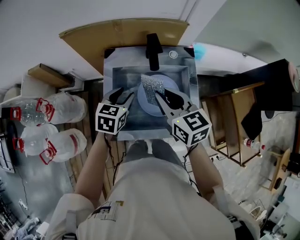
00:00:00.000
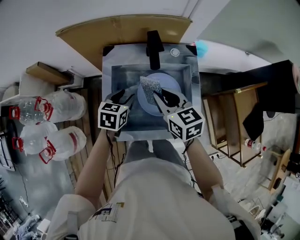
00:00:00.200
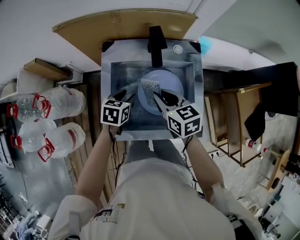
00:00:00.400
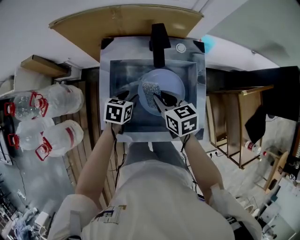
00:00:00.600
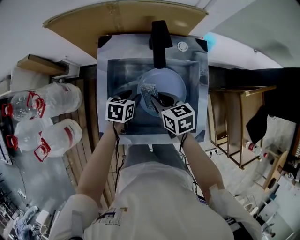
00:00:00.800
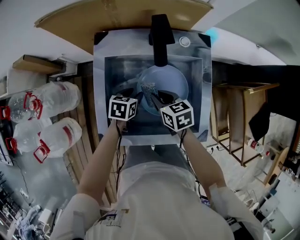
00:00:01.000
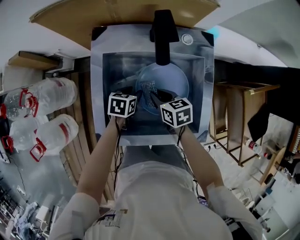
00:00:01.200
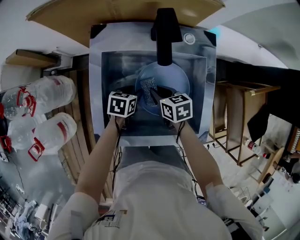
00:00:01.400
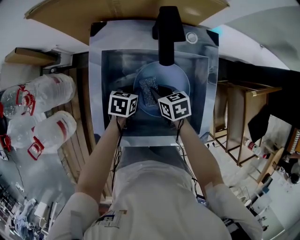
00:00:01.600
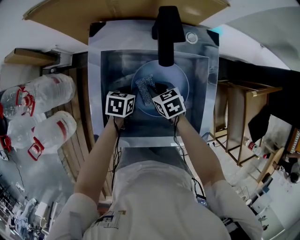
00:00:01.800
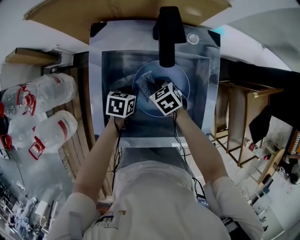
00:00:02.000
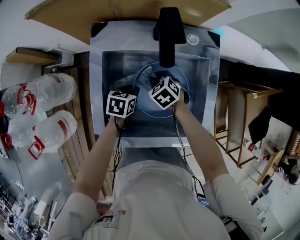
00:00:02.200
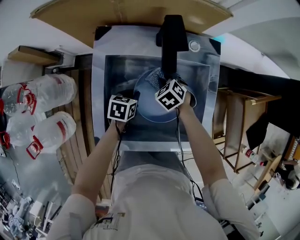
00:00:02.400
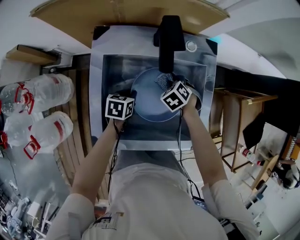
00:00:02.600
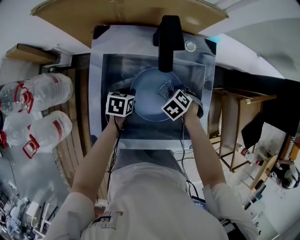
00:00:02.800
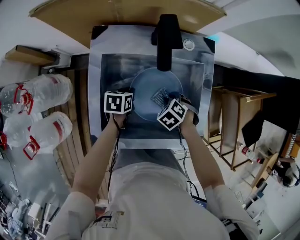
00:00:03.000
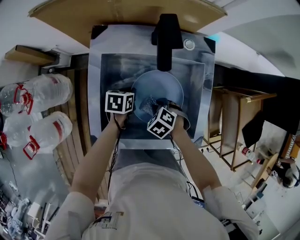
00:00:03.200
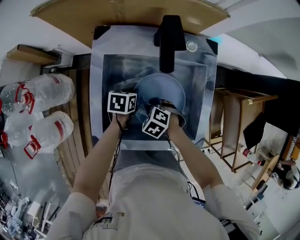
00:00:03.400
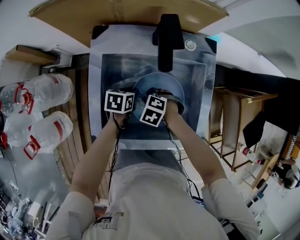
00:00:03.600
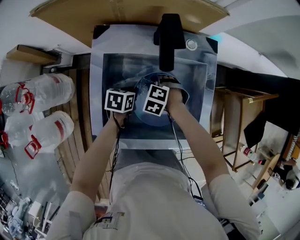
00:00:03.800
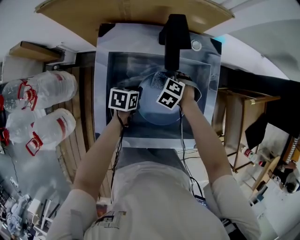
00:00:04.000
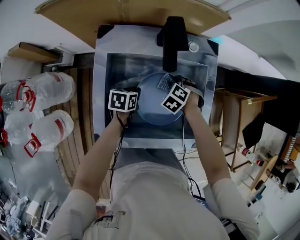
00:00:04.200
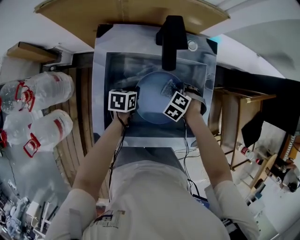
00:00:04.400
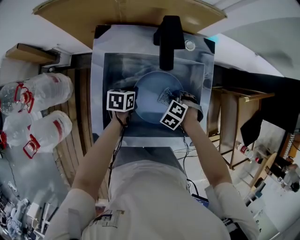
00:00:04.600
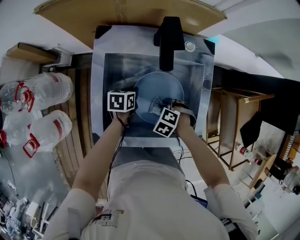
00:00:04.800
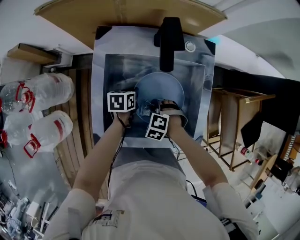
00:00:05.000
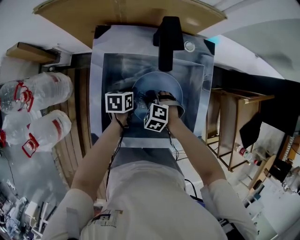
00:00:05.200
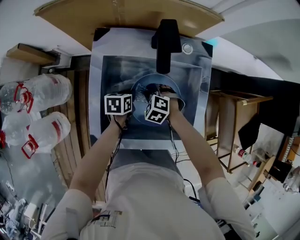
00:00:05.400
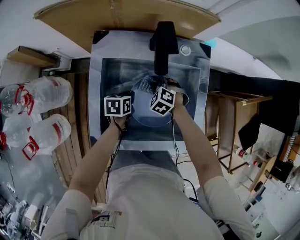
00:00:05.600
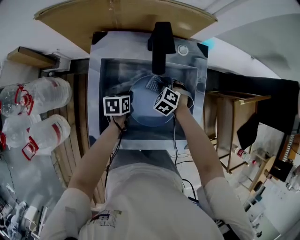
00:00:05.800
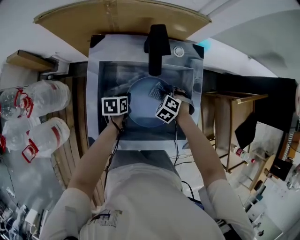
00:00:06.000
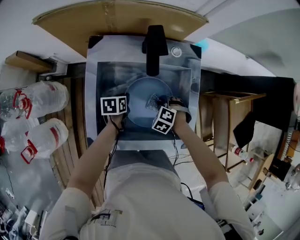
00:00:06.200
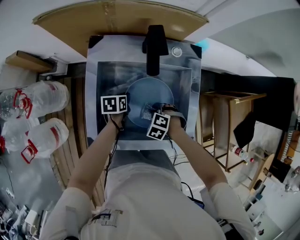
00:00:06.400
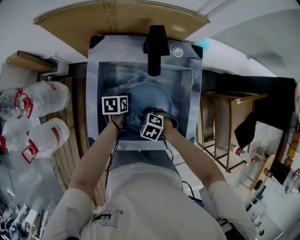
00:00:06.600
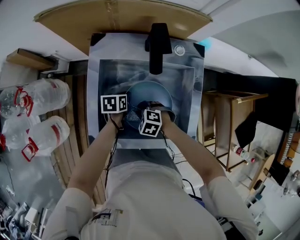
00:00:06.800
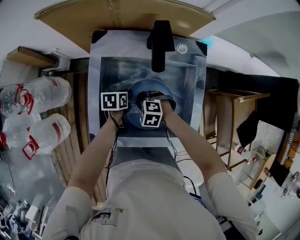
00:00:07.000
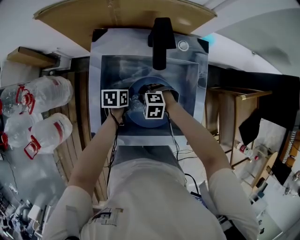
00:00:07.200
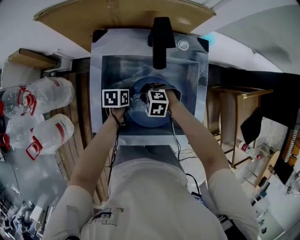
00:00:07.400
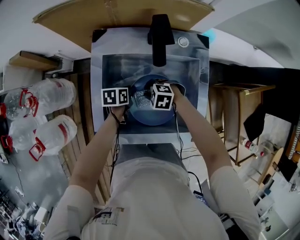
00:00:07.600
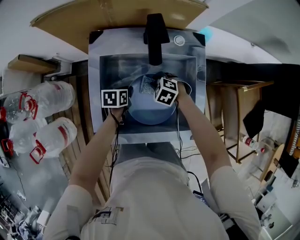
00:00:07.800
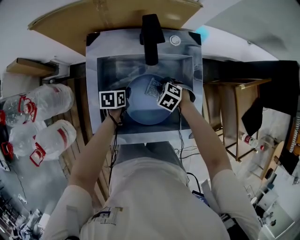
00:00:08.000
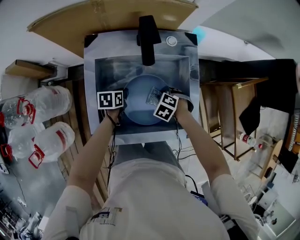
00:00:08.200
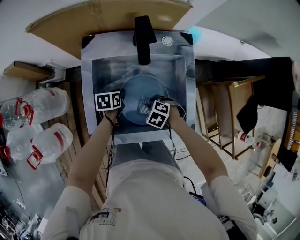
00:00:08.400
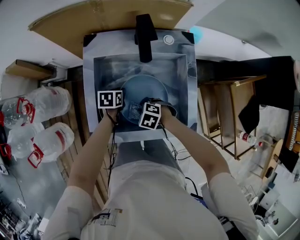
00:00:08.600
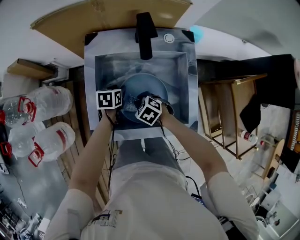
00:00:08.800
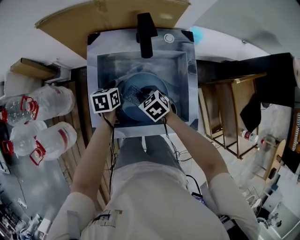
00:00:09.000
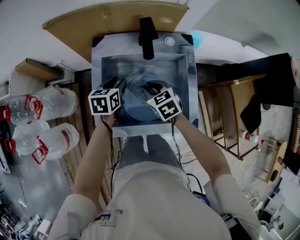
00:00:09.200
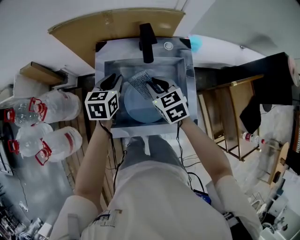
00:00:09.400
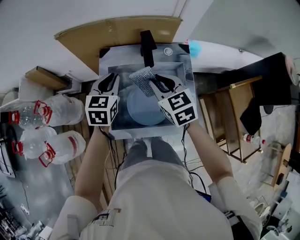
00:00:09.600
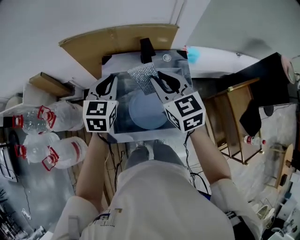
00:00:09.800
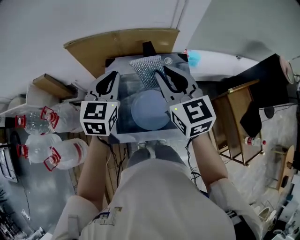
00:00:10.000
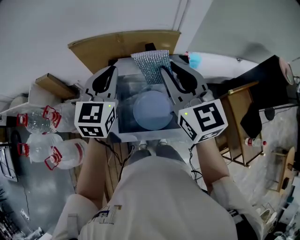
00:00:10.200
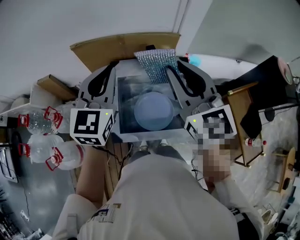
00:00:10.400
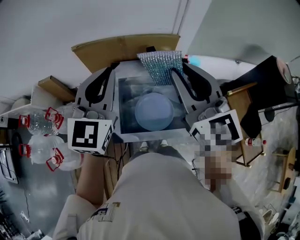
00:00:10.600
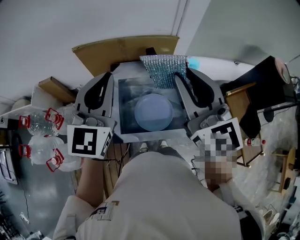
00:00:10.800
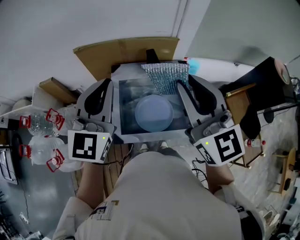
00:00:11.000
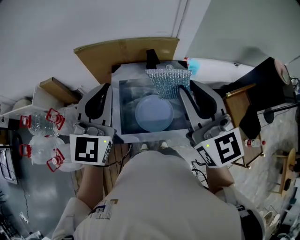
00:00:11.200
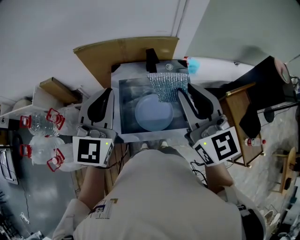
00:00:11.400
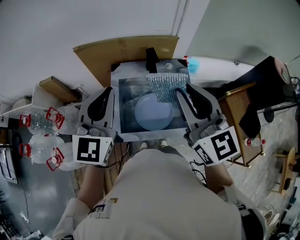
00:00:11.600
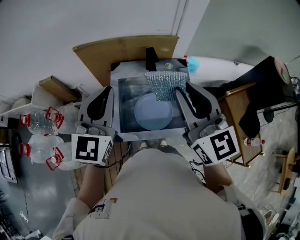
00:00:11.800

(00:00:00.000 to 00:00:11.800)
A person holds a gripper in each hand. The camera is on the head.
00:00:00.000 - 00:00:01.400: The two grippers go roughly 25 cm downward. The right gripper swivels approximately 30 degrees, while the left gripper changes its angle by about 30 degrees.
00:00:01.400 - 00:00:03.000: The left gripper closes up. Meanwhile the right gripper changes place by some 10 cm, and angles its fingers downward, by about 30 degrees.
00:00:06.000 - 00:00:07.400: The right gripper changes place by some 15 cm, and rotates about 30 degrees.
00:00:07.400 - 00:00:08.800: The left gripper opens; the right gripper turns by approximately 30 degrees.
00:00:08.800 - 00:00:10.400: Both grippers travel together upward, some 50 cm. The right gripper points its fingers about 60 degrees further upward. The left gripper angles its fingers upward, by roughly 50 degrees, and closes.
00:00:10.400 - 00:00:11.800: Both grippers move backward, roughly 5 cm.

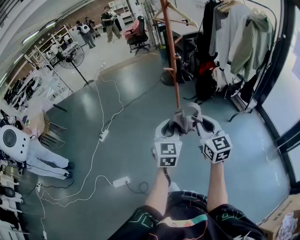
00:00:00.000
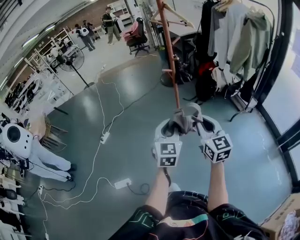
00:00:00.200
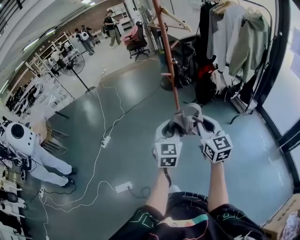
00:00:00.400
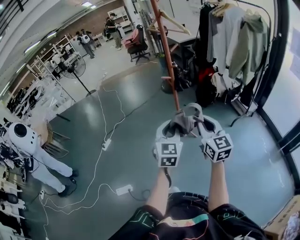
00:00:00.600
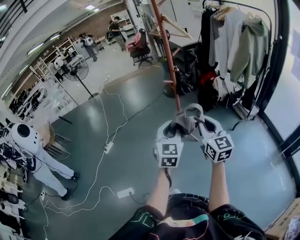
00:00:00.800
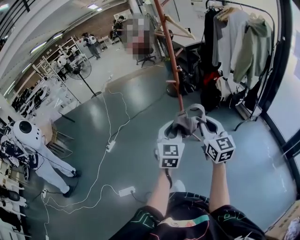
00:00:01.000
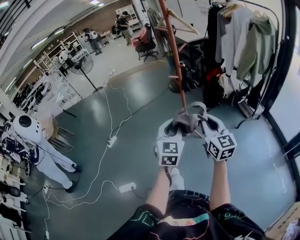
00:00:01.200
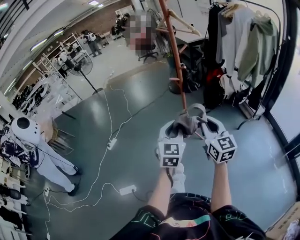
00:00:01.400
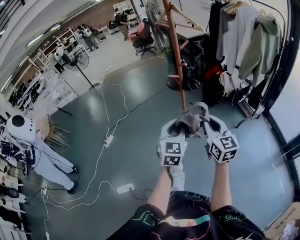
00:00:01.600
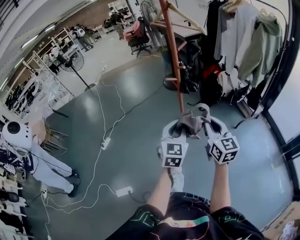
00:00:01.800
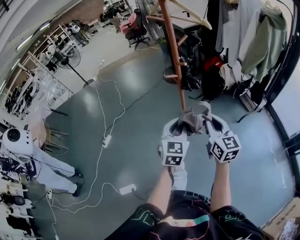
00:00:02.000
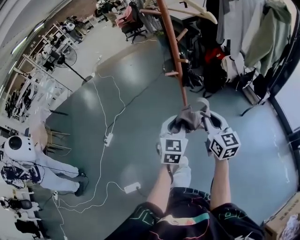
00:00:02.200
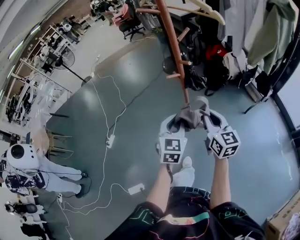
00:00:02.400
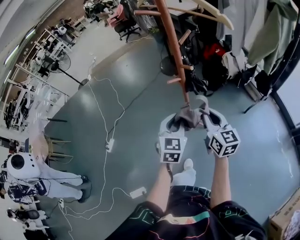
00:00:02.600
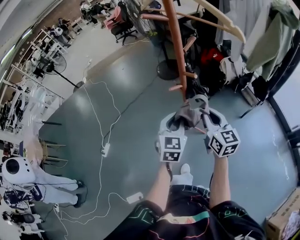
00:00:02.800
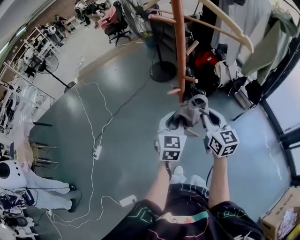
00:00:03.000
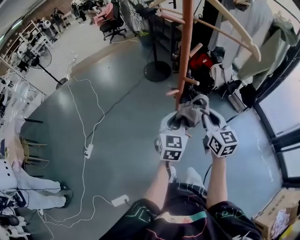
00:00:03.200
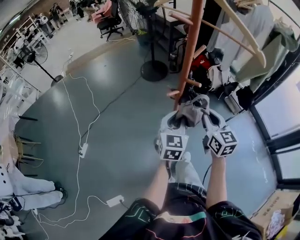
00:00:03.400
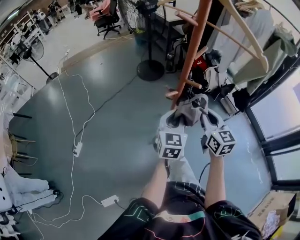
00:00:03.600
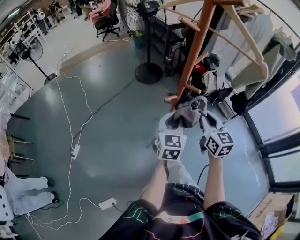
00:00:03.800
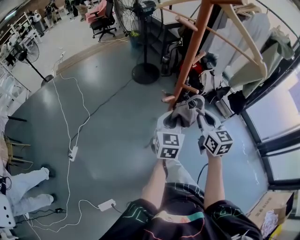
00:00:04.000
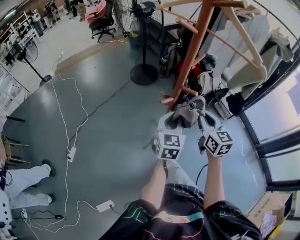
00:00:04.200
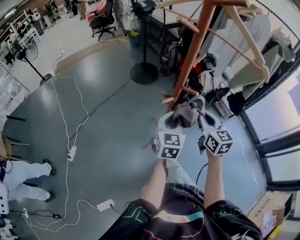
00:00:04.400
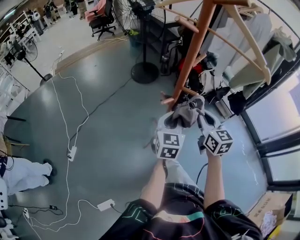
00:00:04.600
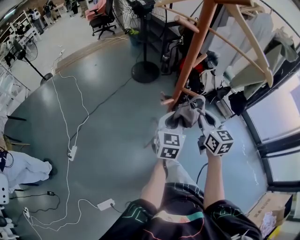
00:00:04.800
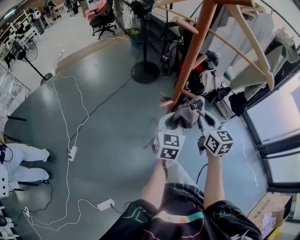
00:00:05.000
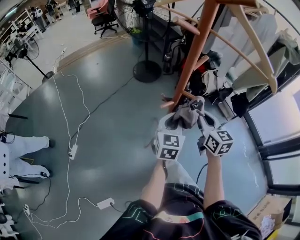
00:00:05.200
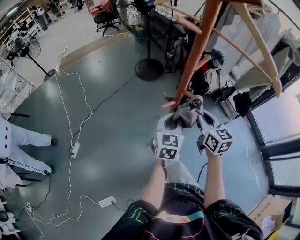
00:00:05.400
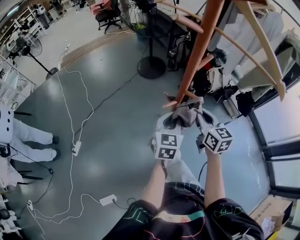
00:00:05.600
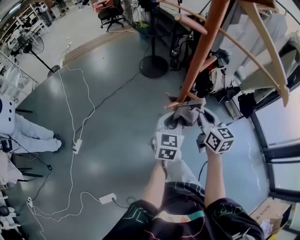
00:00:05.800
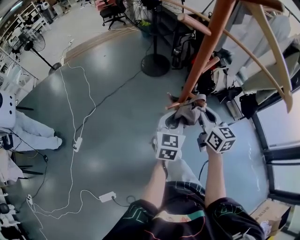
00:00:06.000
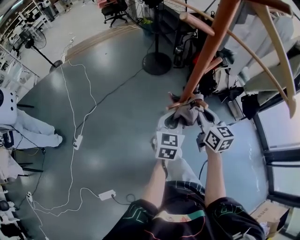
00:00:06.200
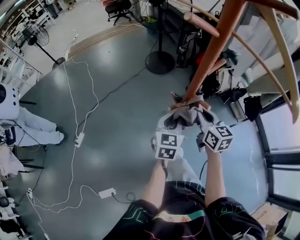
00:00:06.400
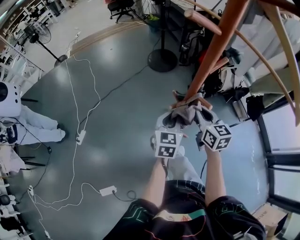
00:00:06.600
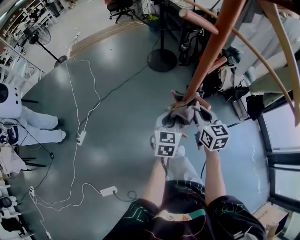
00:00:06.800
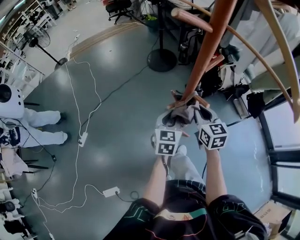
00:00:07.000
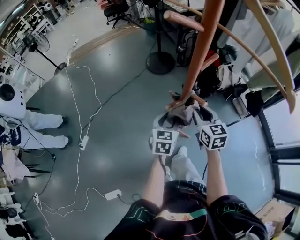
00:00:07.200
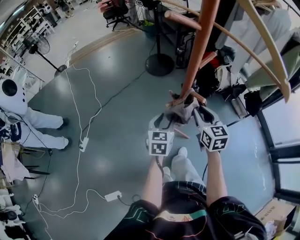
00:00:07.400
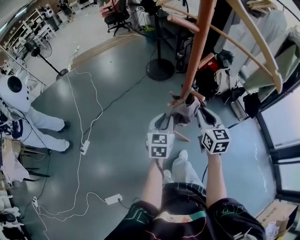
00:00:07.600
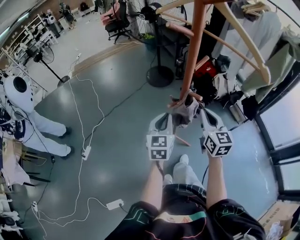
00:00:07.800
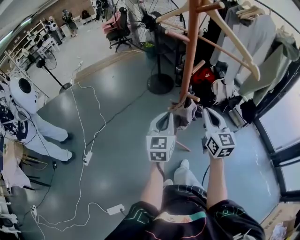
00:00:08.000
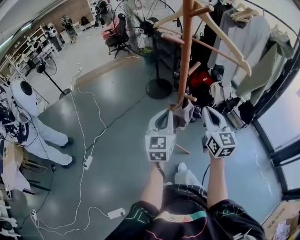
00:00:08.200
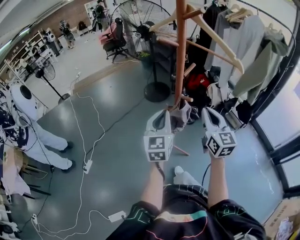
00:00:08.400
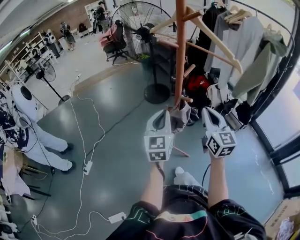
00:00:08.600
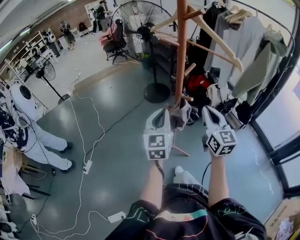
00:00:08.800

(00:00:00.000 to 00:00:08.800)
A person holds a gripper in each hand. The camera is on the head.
00:00:00.000 - 00:00:01.400: The right gripper heads forward, covering some 5 cm. The left gripper moves roughly 5 cm.
00:00:01.400 - 00:00:03.000: The two grippers go some 30 cm forward.
00:00:03.000 - 00:00:04.400: The two grippers go about 5 cm forward.
00:00:04.400 - 00:00:05.800: The left gripper ends up roughly 5 cm from where it was; the right gripper travels forward by about 5 cm.
00:00:05.800 - 00:00:07.400: The left gripper heads downward and to the left, covering some 10 cm, and opens its fingers.
00:00:07.400 - 00:00:08.800: The right gripper moves upward and backward, some 15 cm, turns by approximately 20 degrees, and closes, while the left gripper is displaced upward by some 20 cm, swivels roughly 30 degrees, and closes up.

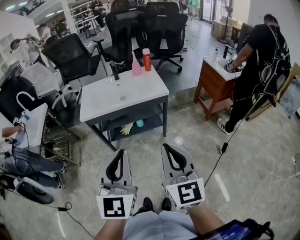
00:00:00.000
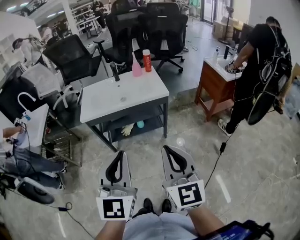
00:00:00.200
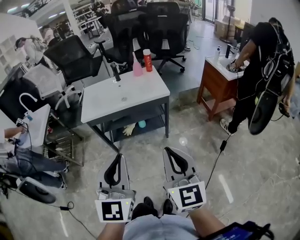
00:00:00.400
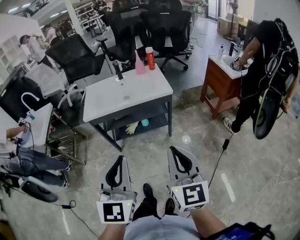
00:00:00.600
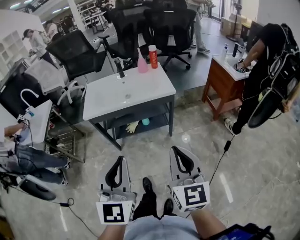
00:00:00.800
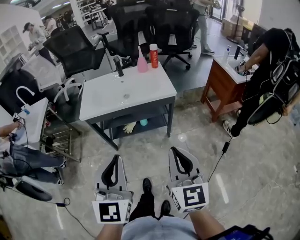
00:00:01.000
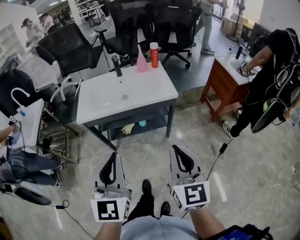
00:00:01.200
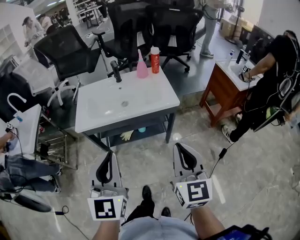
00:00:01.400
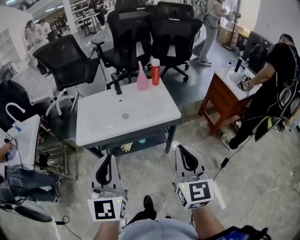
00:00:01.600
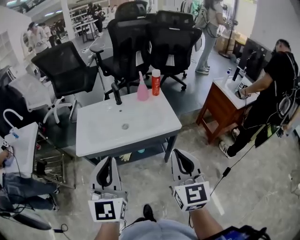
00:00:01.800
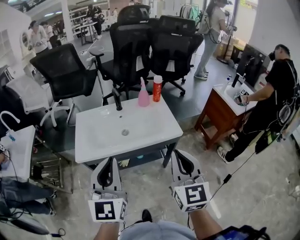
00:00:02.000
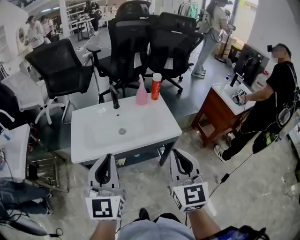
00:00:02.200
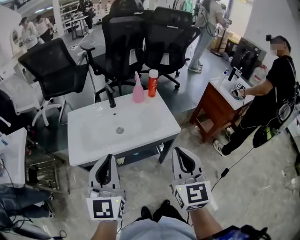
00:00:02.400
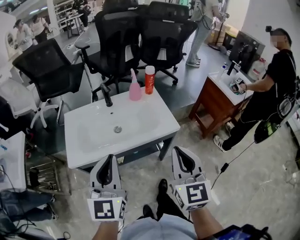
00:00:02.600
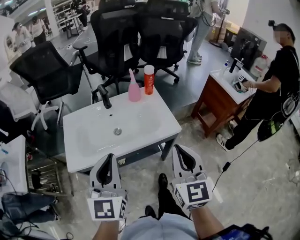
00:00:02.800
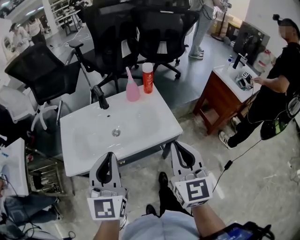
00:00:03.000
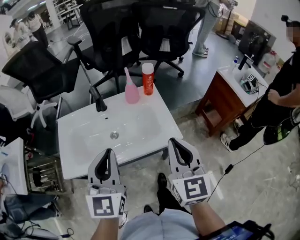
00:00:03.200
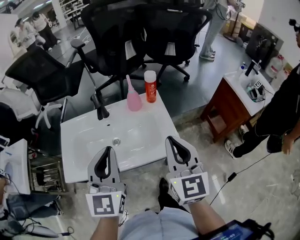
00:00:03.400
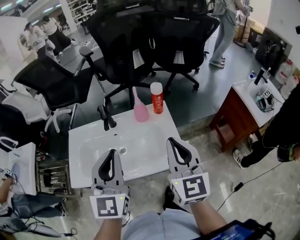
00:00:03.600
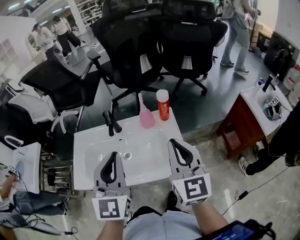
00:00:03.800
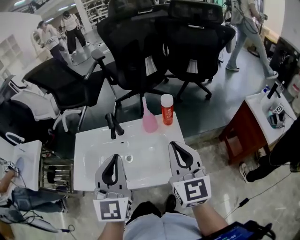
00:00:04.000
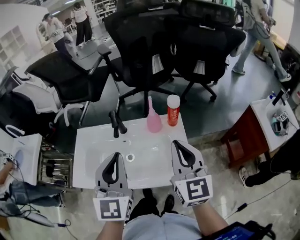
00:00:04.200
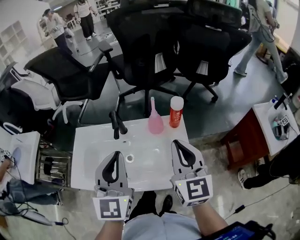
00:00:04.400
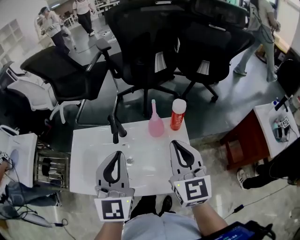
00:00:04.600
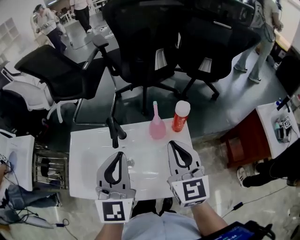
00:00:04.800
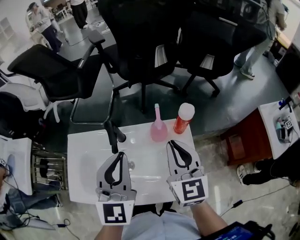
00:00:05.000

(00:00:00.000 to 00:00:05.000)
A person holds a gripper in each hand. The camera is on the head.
00:00:00.000 - 00:00:01.600: The two grippers go some 25 cm forward.
00:00:01.600 - 00:00:03.400: Both grippers move forward, approximately 30 cm.
00:00:03.400 - 00:00:05.000: The two grippers go some 20 cm forward.
